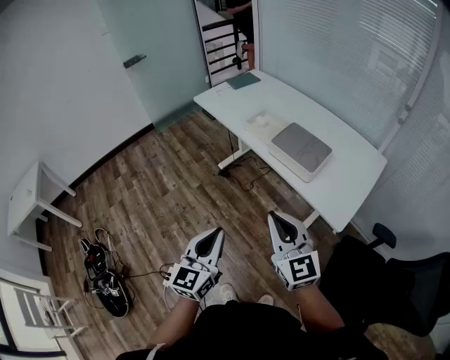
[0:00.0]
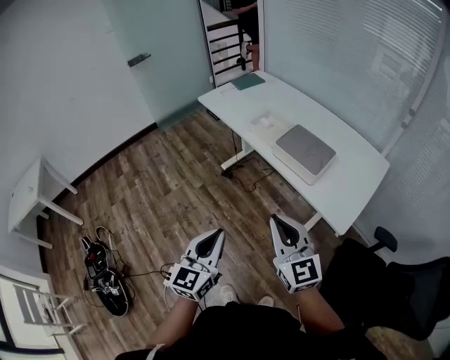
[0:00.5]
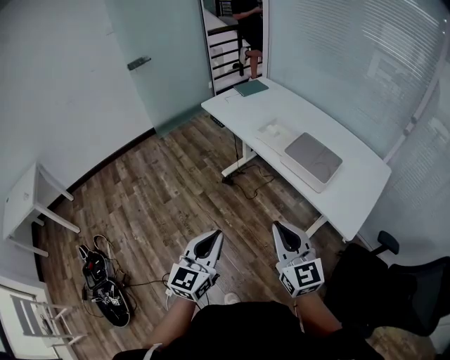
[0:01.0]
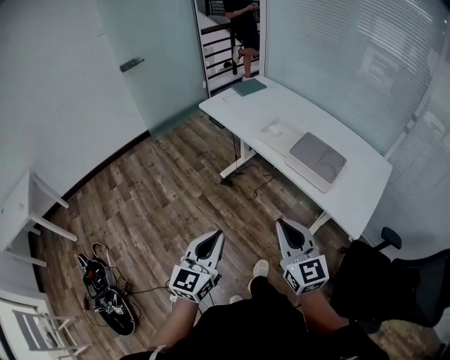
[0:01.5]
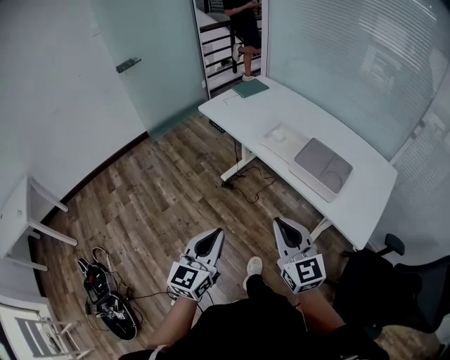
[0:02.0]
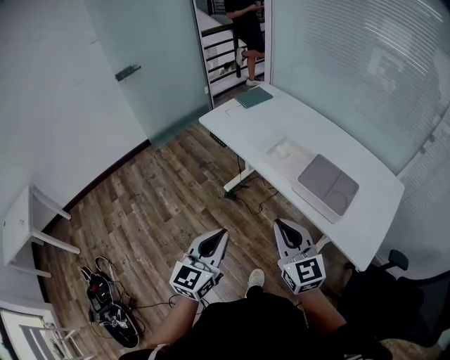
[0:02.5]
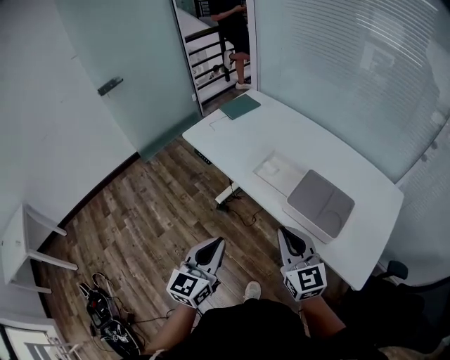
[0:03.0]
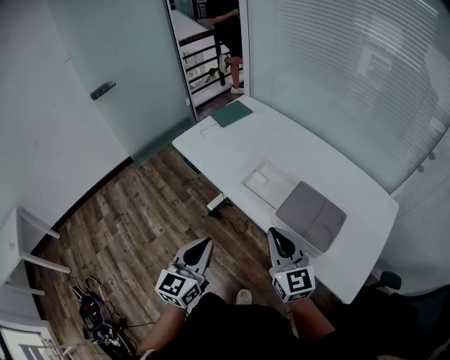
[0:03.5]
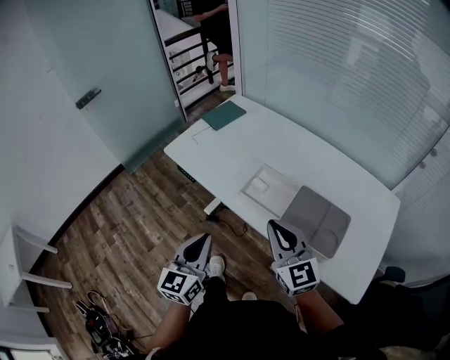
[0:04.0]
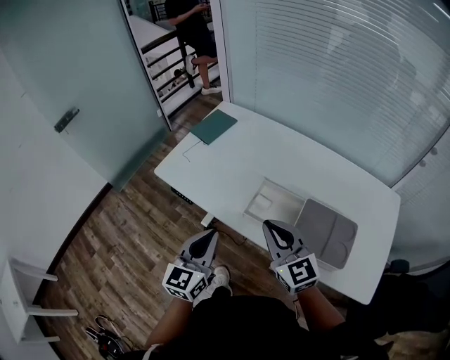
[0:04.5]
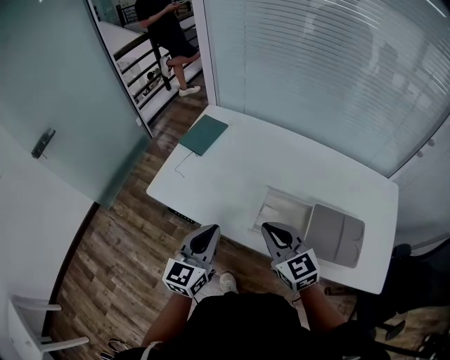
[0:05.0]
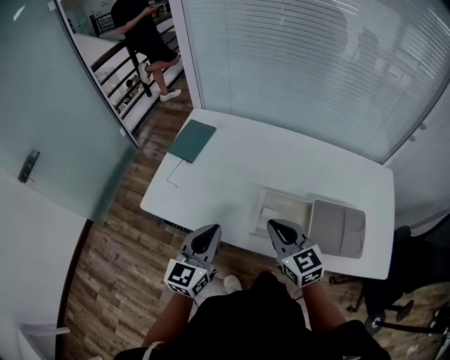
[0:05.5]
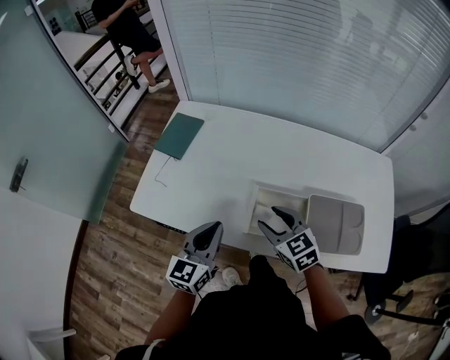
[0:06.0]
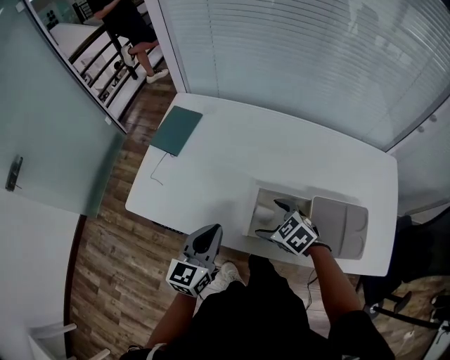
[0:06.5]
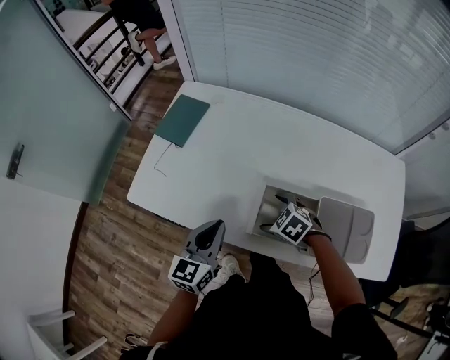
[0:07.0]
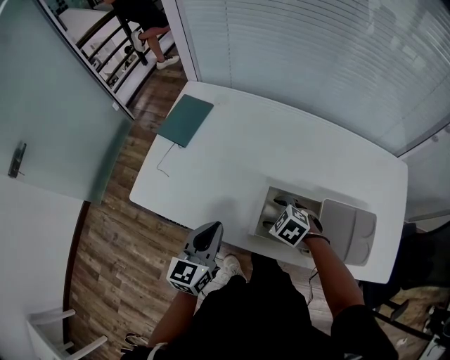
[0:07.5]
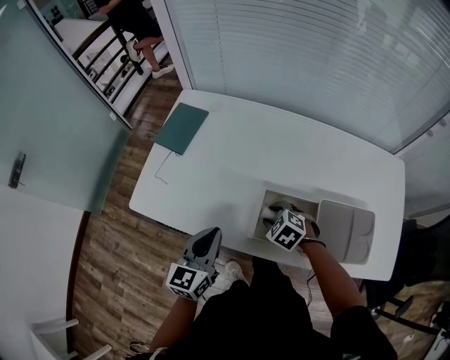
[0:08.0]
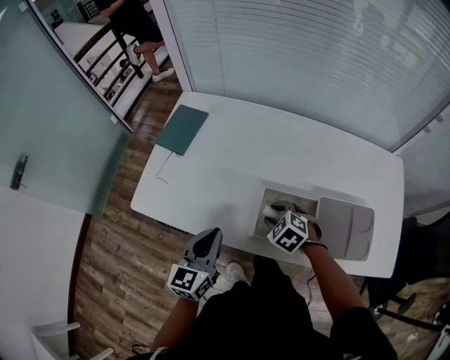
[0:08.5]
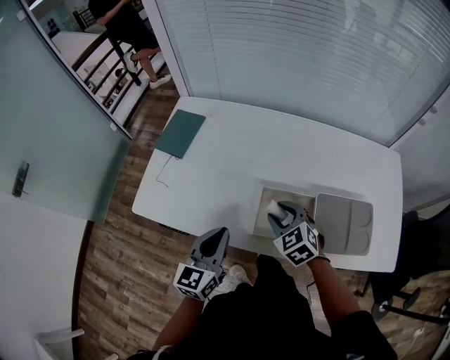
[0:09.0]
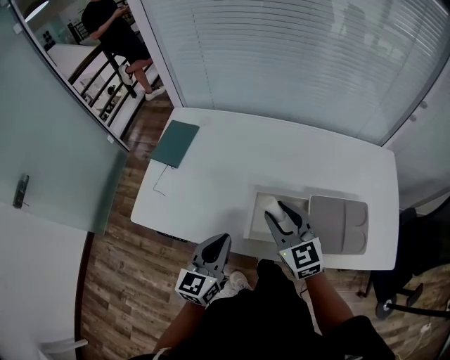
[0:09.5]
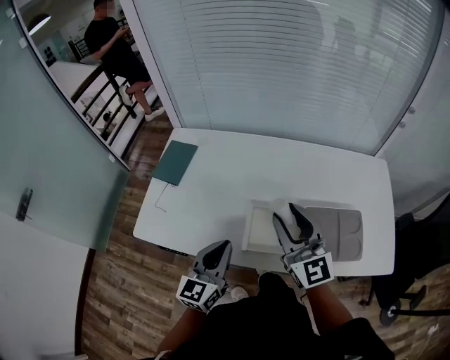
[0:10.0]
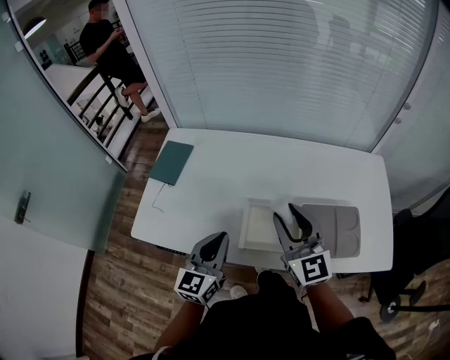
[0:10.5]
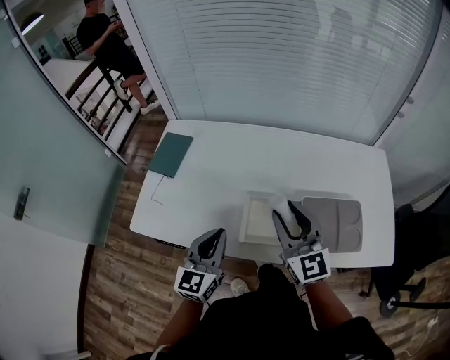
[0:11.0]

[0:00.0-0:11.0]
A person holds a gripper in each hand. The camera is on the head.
0.0 to 2.0 s: The two grippers go about 15 cm forward and to the left.
2.0 to 3.5 s: The two grippers go approximately 20 cm forward.
3.5 to 5.5 s: The left gripper travels forward by approximately 30 cm, and rotates some 30 degrees, while the right gripper travels forward and to the left by some 25 cm, and swivels some 20 degrees.
5.5 to 7.5 s: The left gripper moves downward, approximately 10 cm, while the right gripper moves downward, roughly 20 cm, points its fingers roughly 50 degrees further downward, and opens.
7.5 to 9.0 s: The right gripper shifts about 10 cm upward, turns by about 30 degrees, and closes its fingers.
9.0 to 11.0 s: The left gripper moves upward, approximately 5 cm. Meanwhile the right gripper travels upward by approximately 20 cm, and tilts its fingers approximately 40 degrees upward.

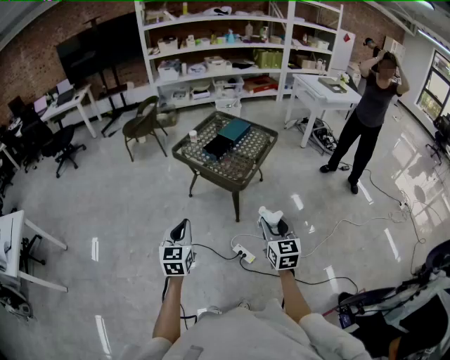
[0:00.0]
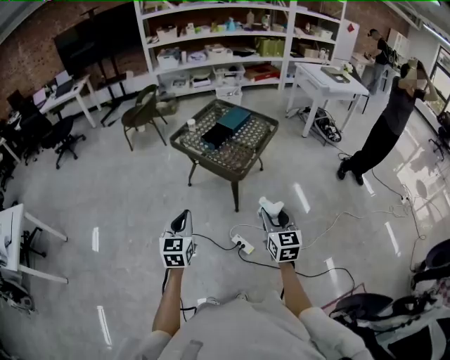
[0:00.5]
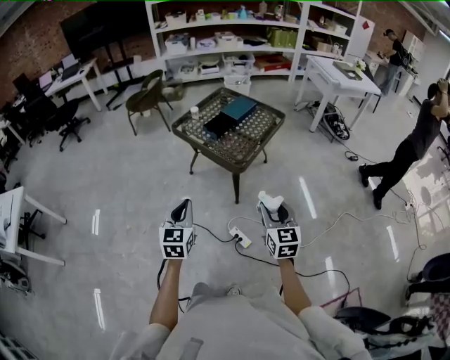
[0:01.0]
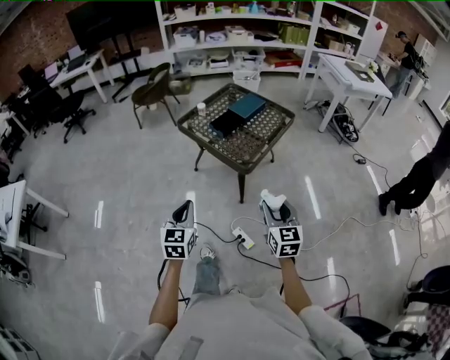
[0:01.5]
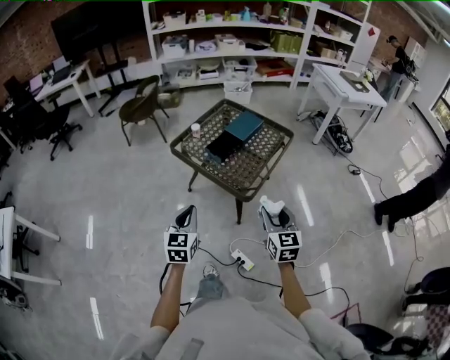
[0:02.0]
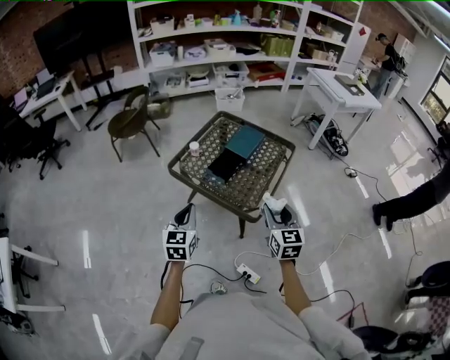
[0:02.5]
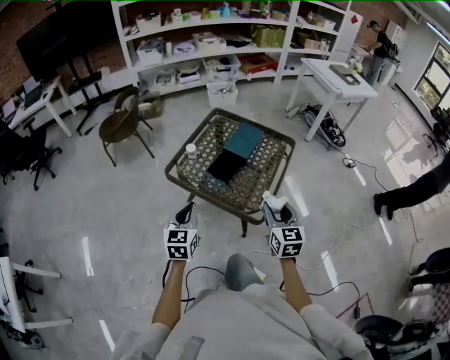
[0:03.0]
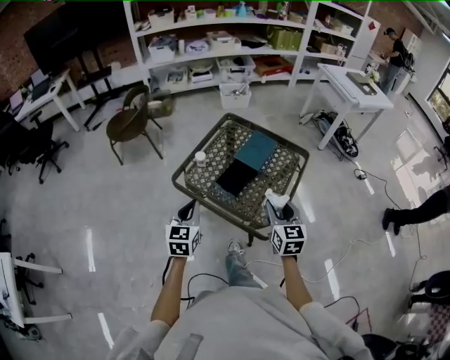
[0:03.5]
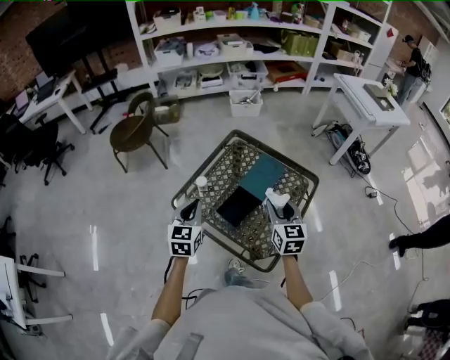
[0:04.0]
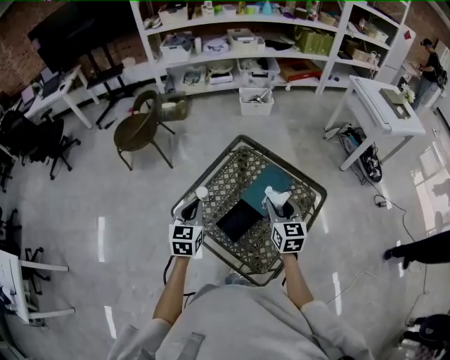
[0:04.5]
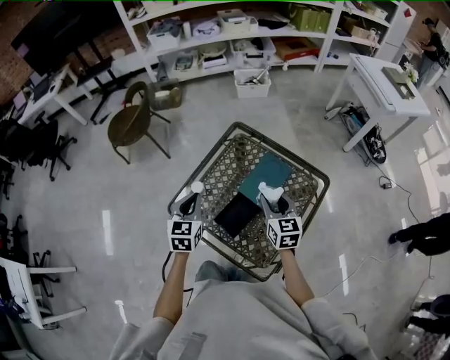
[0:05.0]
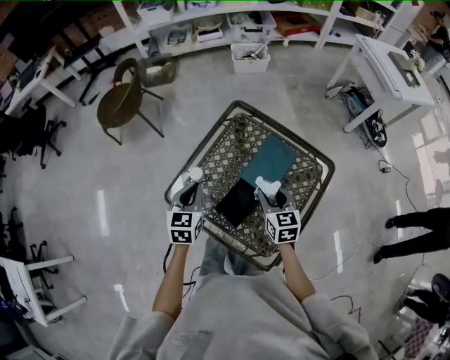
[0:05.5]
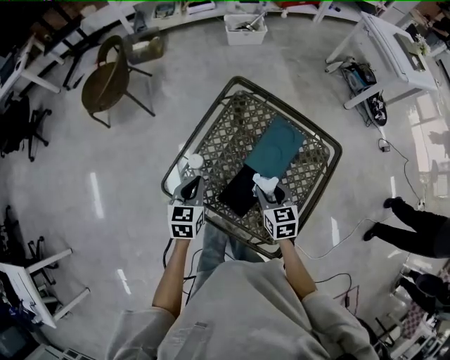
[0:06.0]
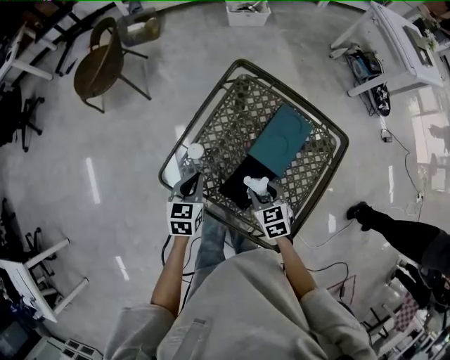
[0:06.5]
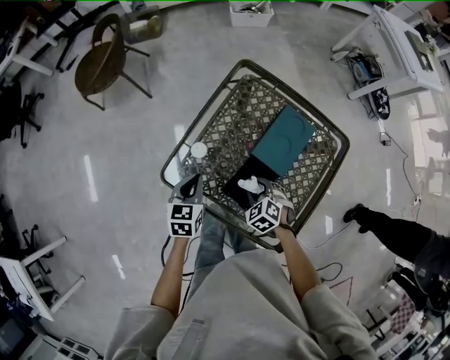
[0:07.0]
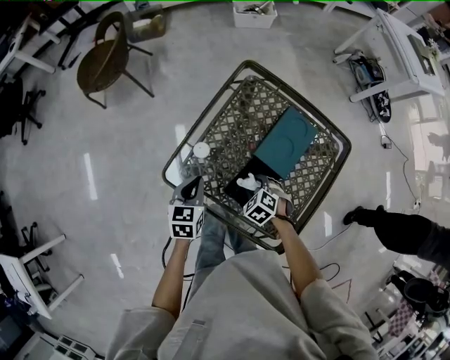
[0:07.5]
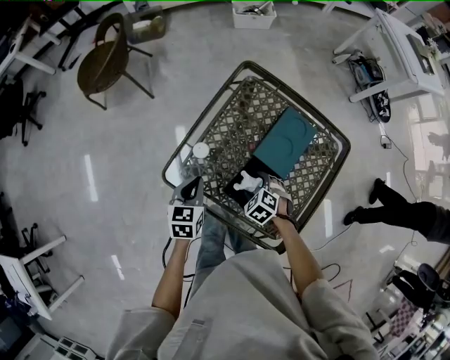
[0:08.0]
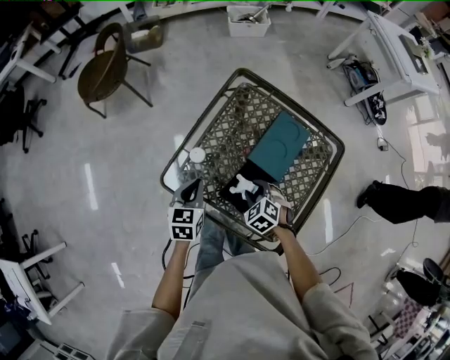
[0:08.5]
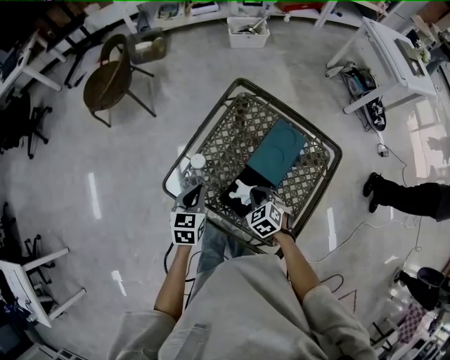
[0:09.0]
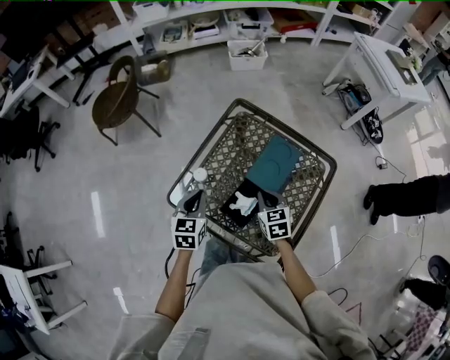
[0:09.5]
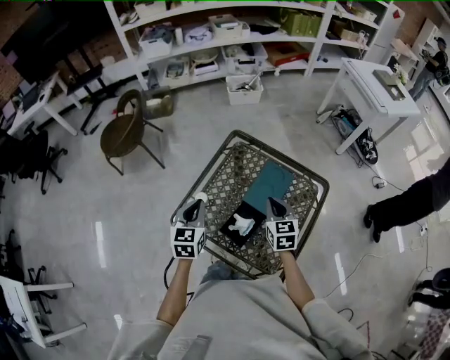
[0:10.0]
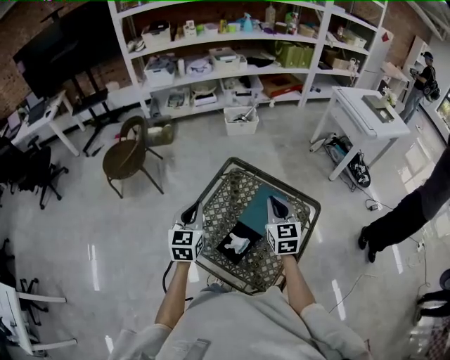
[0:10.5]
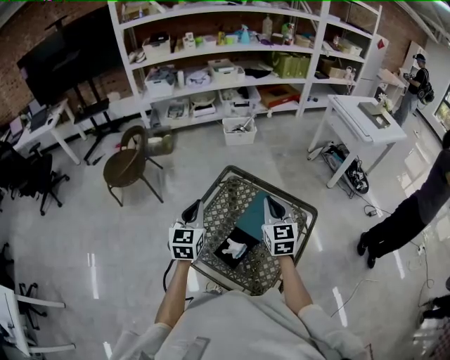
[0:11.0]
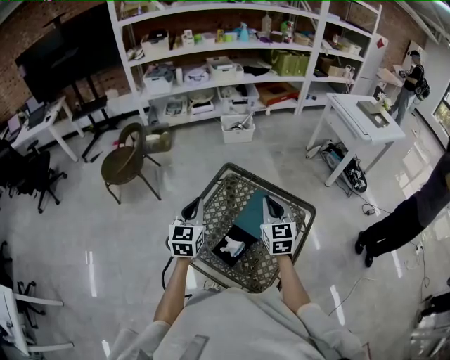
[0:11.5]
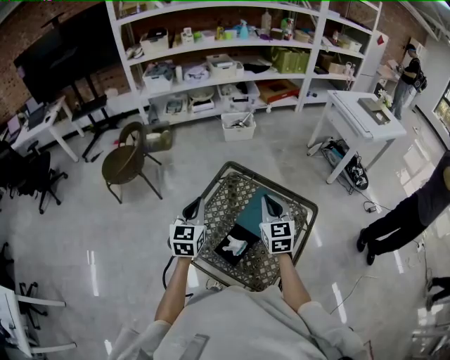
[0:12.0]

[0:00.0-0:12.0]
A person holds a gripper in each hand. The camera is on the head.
0.0 to 2.0 s: The grippers both shift forward by approximately 20 cm.
2.0 to 4.0 s: The pair of grippers is taken forward, approximately 40 cm.
4.0 to 6.0 s: Both grippers travel together downward and forward, approximately 20 cm. The right gripper turns by some 20 degrees.
6.0 to 8.0 s: The right gripper is displaced downward and to the left by about 15 cm, tips its fingers downward by roughly 30 degrees, and opens up. Meanwhile the left gripper heads downward, covering some 5 cm.
8.0 to 10.0 s: The right gripper goes roughly 25 cm upward, points its fingers some 40 degrees further upward, and closes up. Meanwhile the left gripper goes approximately 15 cm upward.
10.0 to 12.0 s: The grippers both shift upward by about 10 cm.

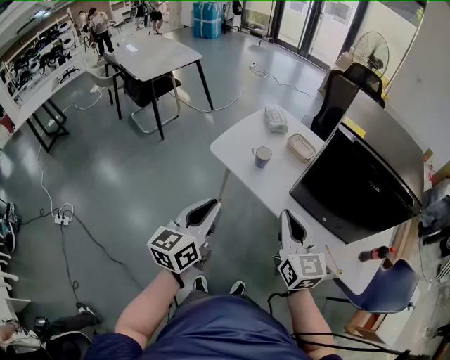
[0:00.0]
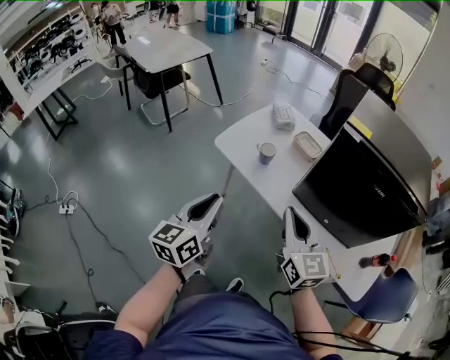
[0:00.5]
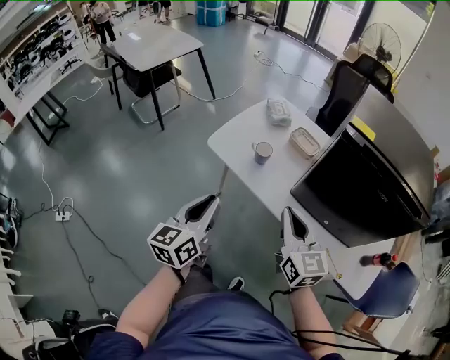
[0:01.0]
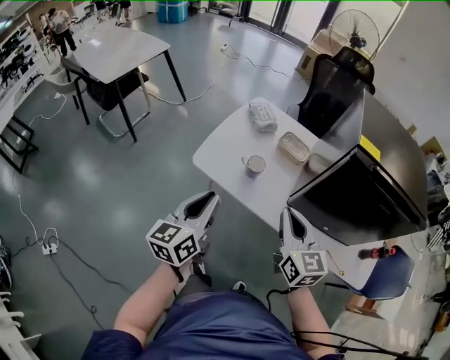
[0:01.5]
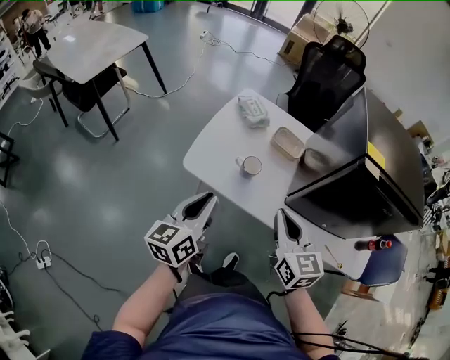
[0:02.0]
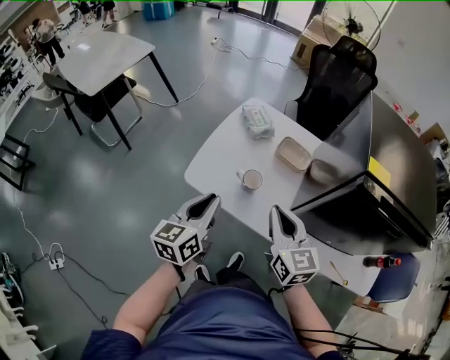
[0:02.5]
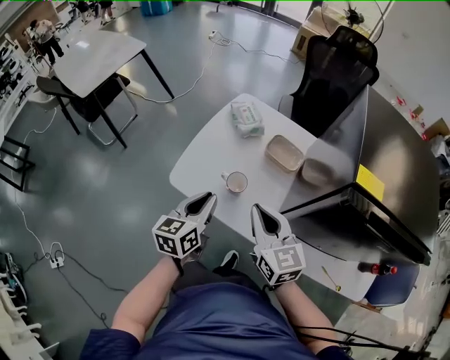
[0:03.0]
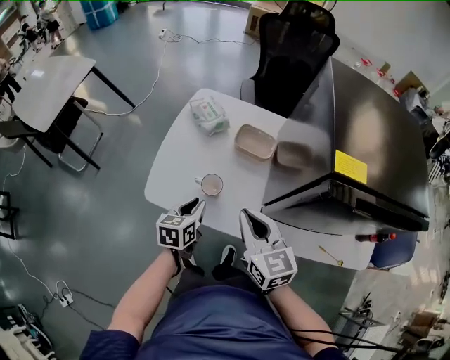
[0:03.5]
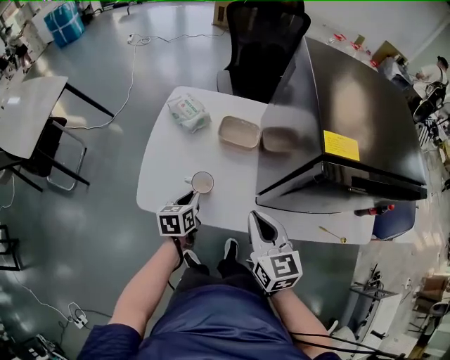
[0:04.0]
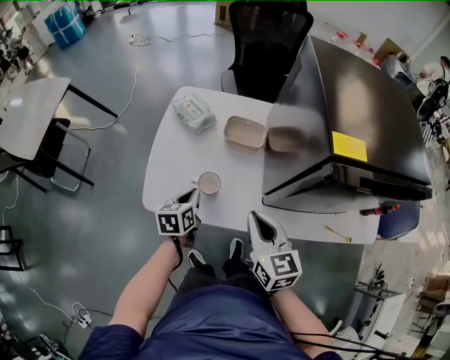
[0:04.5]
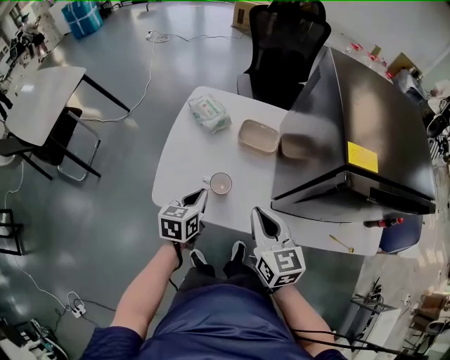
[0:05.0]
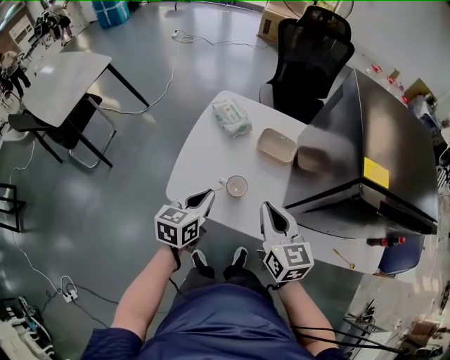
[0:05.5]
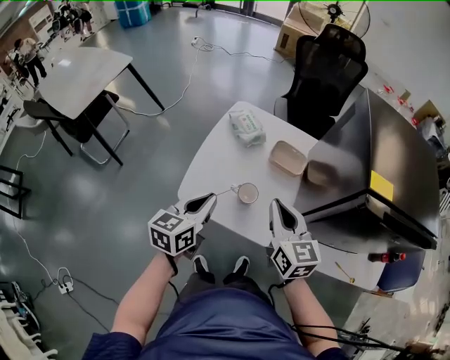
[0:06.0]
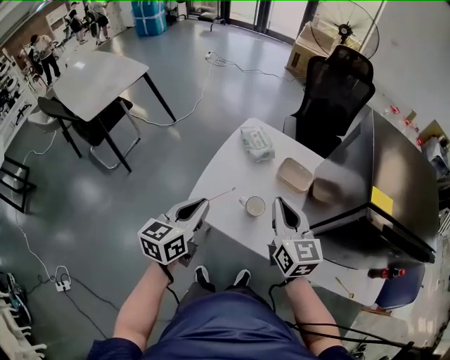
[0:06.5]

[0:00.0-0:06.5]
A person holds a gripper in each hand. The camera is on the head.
0.0 to 2.0 s: Both grippers travel together forward, about 20 cm.
2.0 to 4.5 s: The right gripper heads forward, downward and to the right, covering roughly 10 cm. The left gripper is displaced forward, downward and to the right by some 30 cm, and points its fingers about 30 degrees further downward.
4.5 to 6.5 s: The right gripper shifts about 15 cm to the left, upward and forward; the left gripper is displaced upward and to the left by approximately 20 cm, and turns by approximately 30 degrees.
